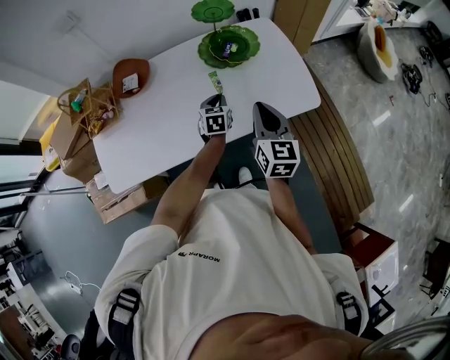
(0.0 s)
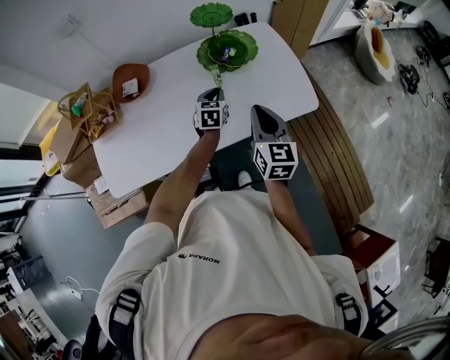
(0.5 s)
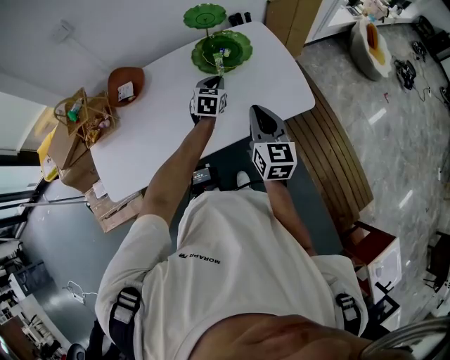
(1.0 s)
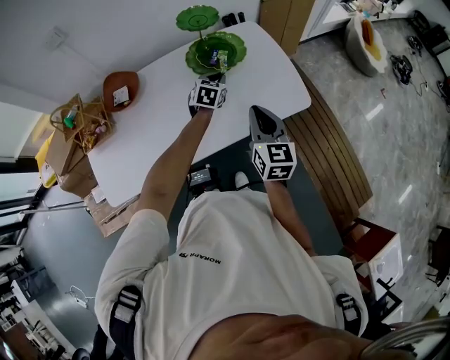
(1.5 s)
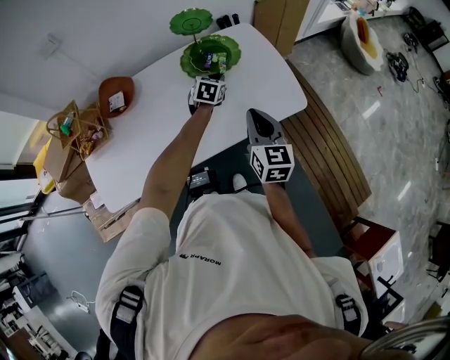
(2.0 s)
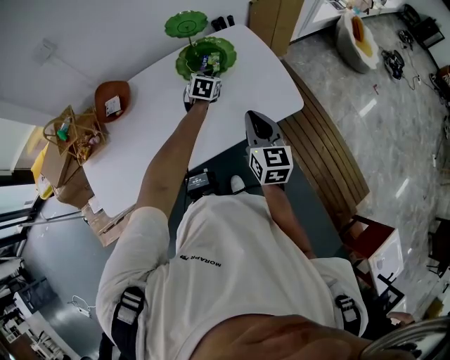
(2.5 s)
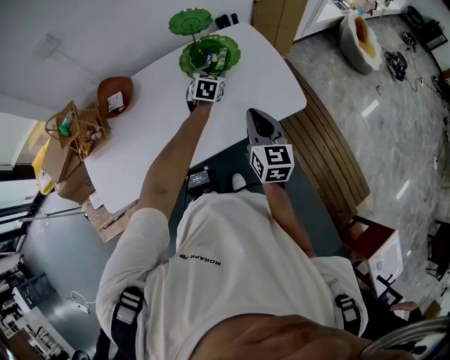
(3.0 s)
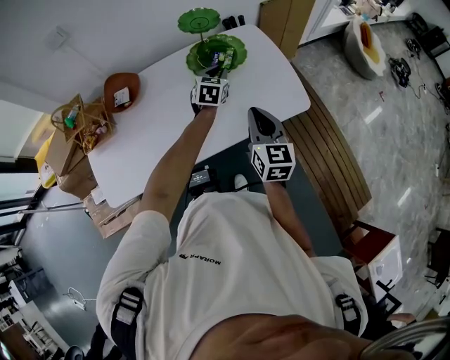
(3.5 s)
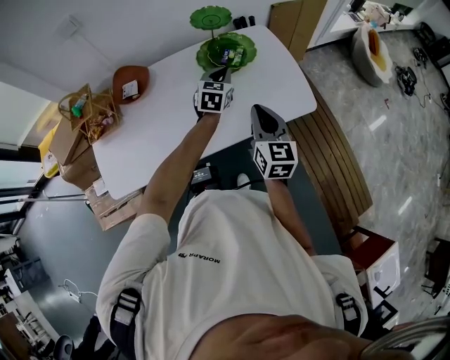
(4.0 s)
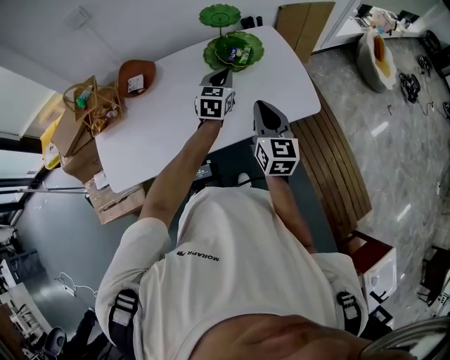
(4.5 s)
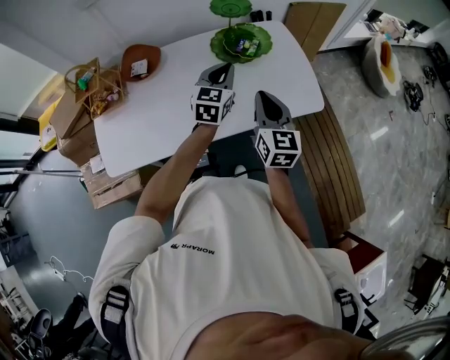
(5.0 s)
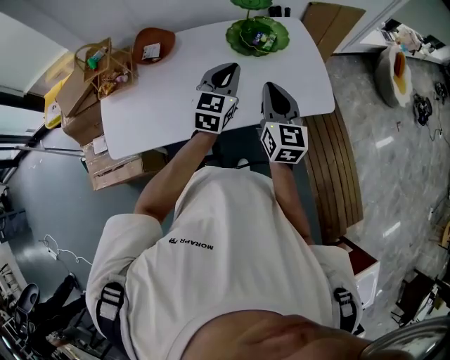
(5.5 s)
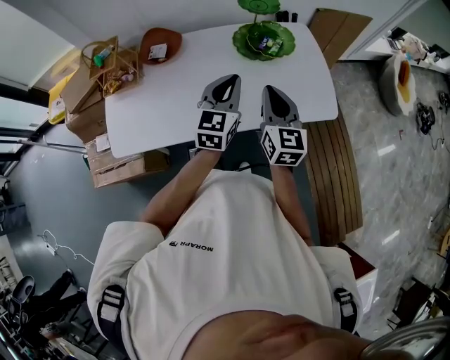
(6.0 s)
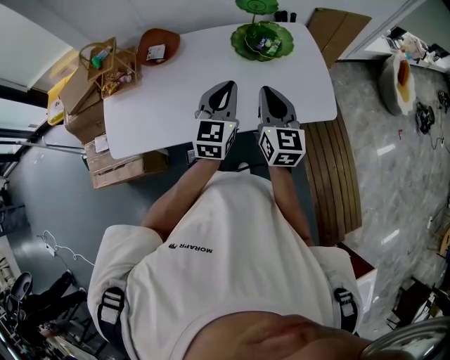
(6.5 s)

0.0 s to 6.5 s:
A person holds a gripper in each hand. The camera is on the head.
0.0 to 2.0 s: The left gripper shifts some 15 cm forward and to the right, and rotates roughly 20 degrees.
2.0 to 4.5 s: The right gripper shifts by some 5 cm. The left gripper shifts about 15 cm upward, backward and to the left, changes its angle by about 20 degrees, and opens and closes again.
4.5 to 6.5 s: The right gripper shifts by roughly 5 cm. Meanwhile the left gripper travels backward, upward and to the left by roughly 15 cm.

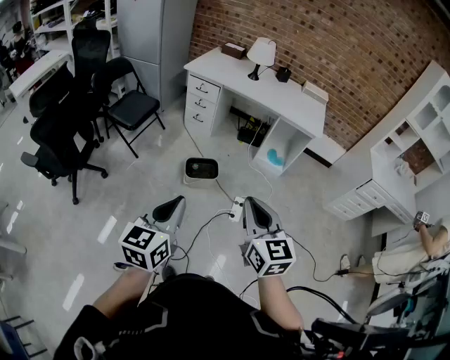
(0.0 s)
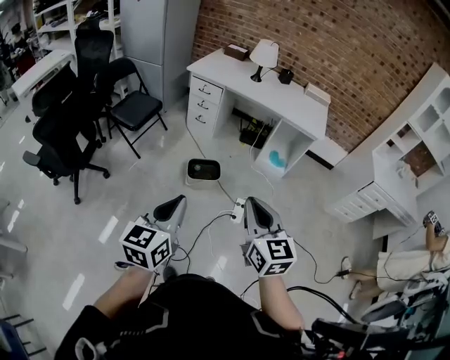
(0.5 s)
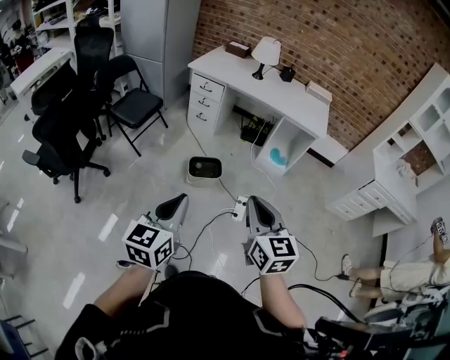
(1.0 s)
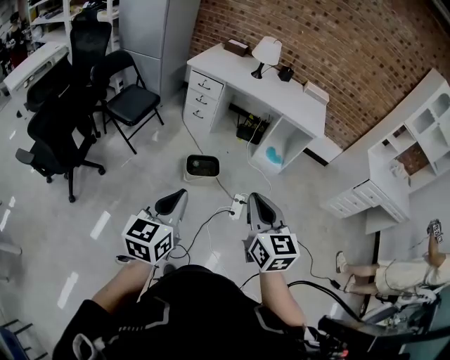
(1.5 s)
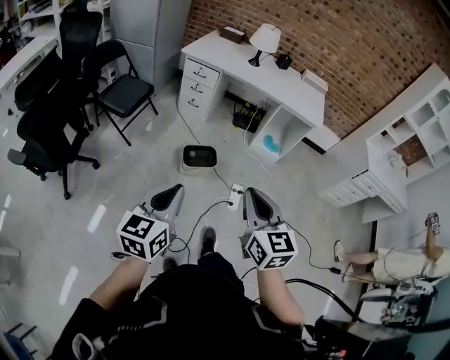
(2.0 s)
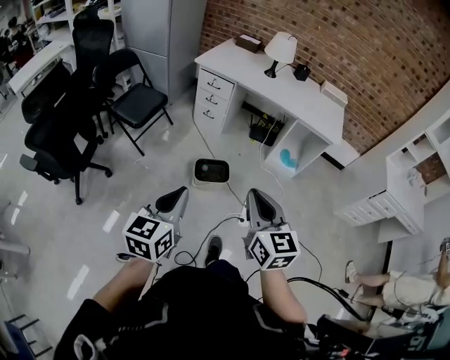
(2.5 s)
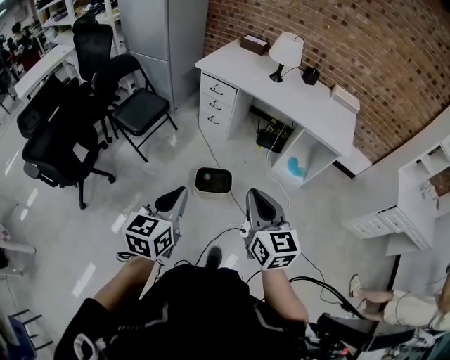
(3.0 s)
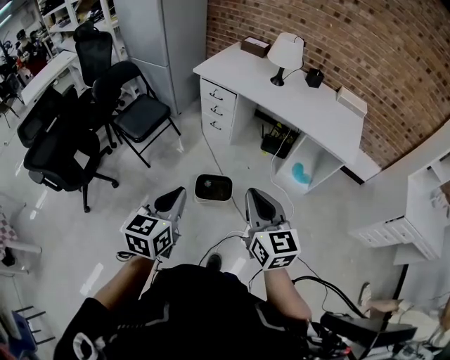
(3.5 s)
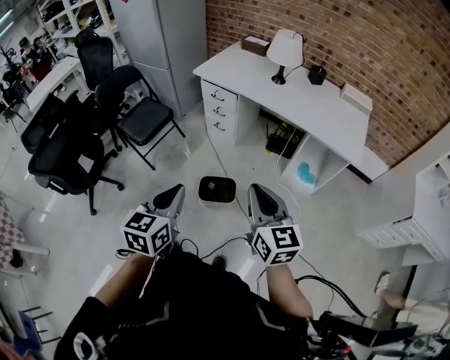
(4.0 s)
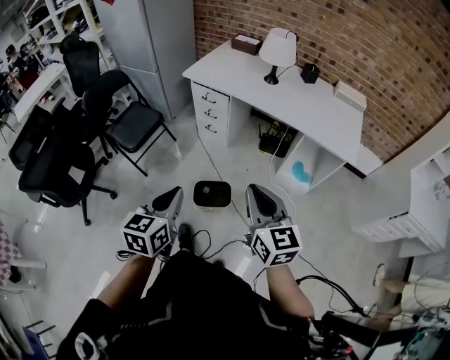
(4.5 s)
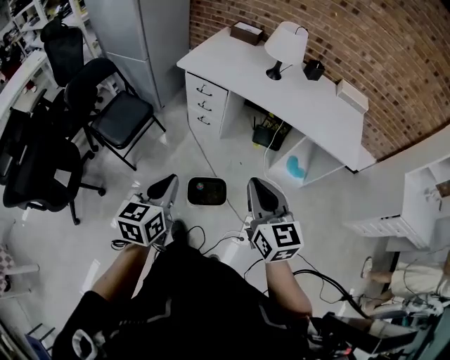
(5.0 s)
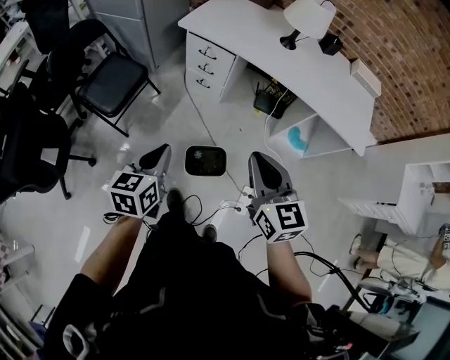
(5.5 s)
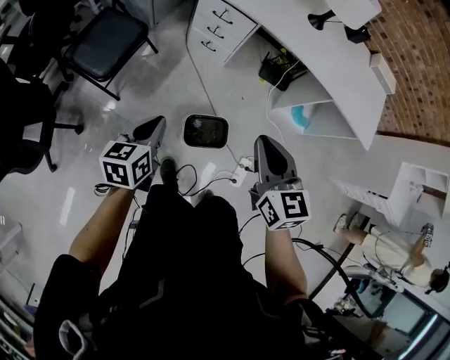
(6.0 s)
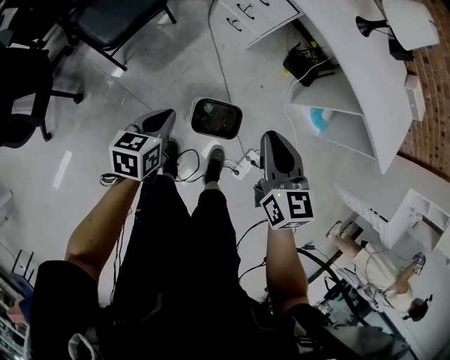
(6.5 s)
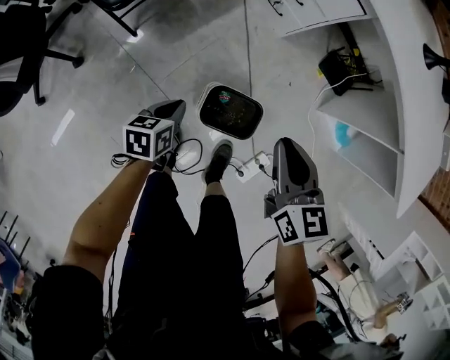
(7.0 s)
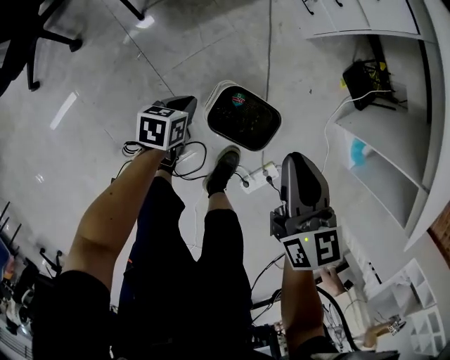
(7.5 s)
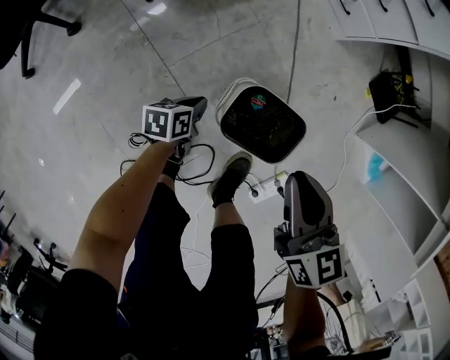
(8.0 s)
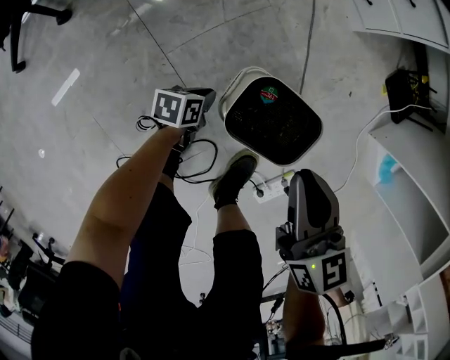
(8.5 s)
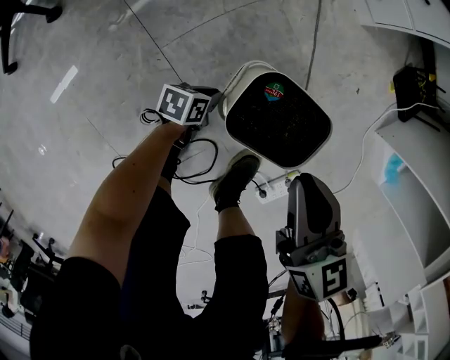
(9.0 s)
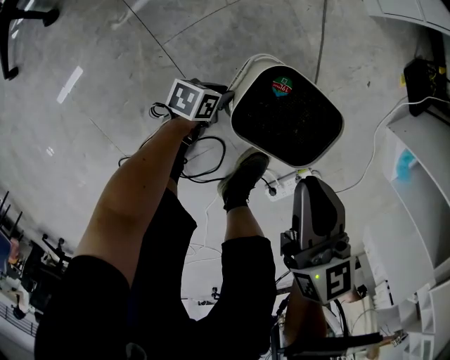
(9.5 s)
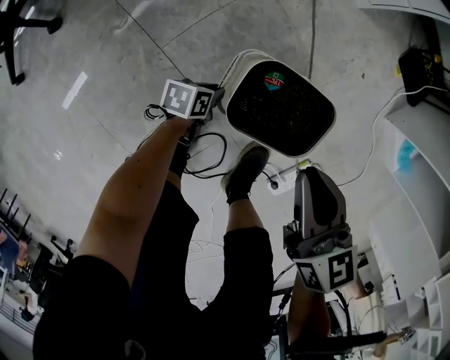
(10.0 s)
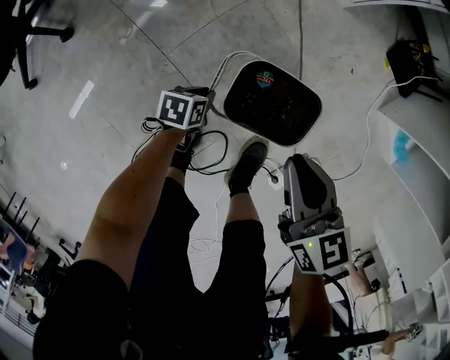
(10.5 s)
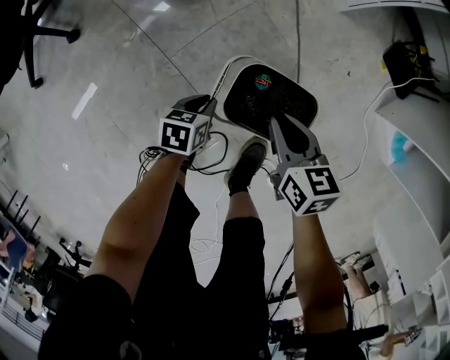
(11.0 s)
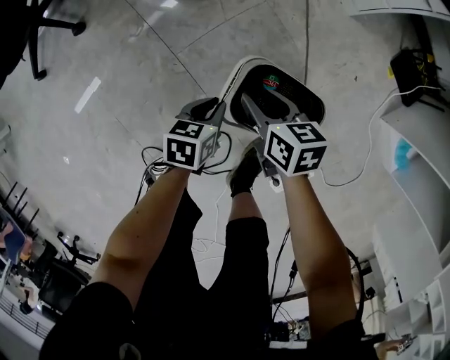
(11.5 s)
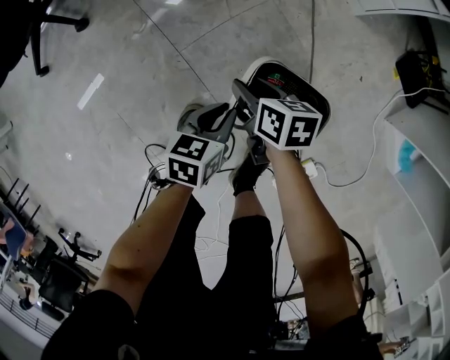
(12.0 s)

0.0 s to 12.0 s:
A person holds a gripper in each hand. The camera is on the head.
0.0 to 2.0 s: The two grippers go about 10 cm to the left.
2.0 to 4.0 s: The two grippers go roughly 30 cm forward and to the right.
4.0 to 6.0 s: The right gripper goes some 30 cm forward, to the left and downward, while the left gripper is displaced forward, downward and to the left by about 40 cm, and turns by some 20 degrees.
6.0 to 8.0 s: The grippers both shift downward by some 50 cm. The left gripper turns by some 40 degrees, while the right gripper turns by some 30 degrees.
8.0 to 10.0 s: The left gripper shifts approximately 15 cm downward and to the right; the right gripper moves downward, roughly 10 cm.
10.0 to 12.0 s: The right gripper shifts about 15 cm downward, turns by approximately 30 degrees, and opens up, while the left gripper heads upward, covering about 20 cm, and rotates roughly 20 degrees.

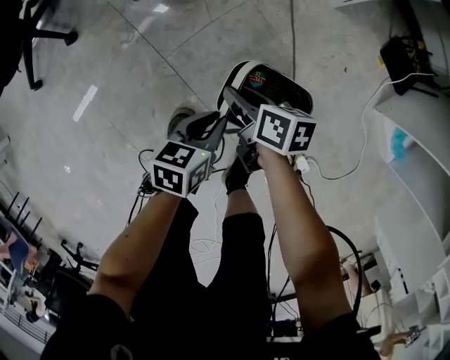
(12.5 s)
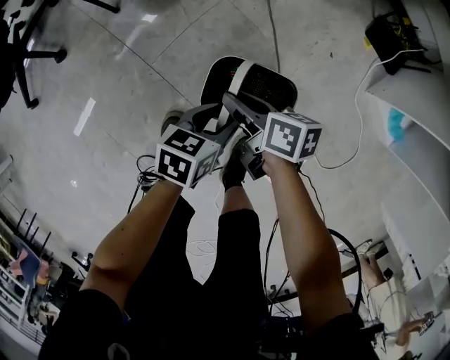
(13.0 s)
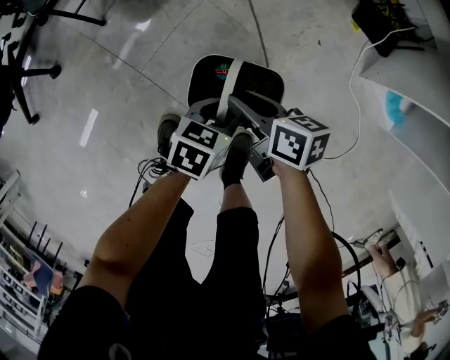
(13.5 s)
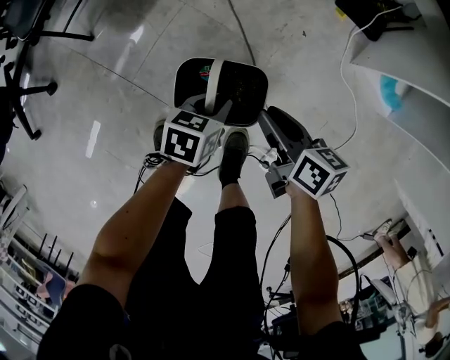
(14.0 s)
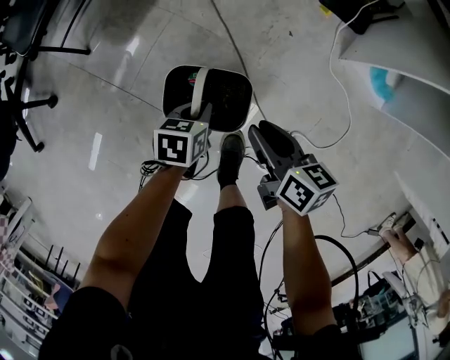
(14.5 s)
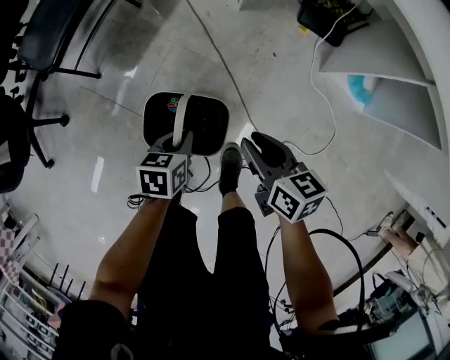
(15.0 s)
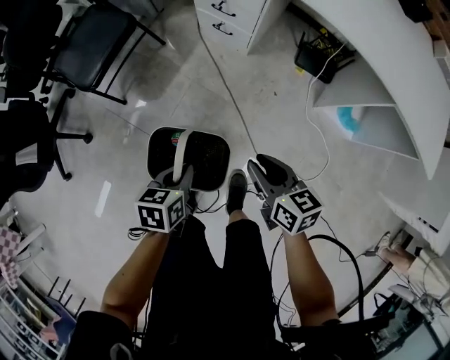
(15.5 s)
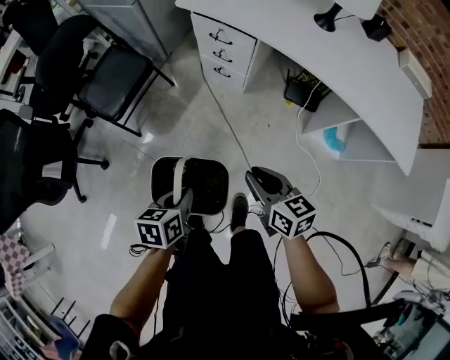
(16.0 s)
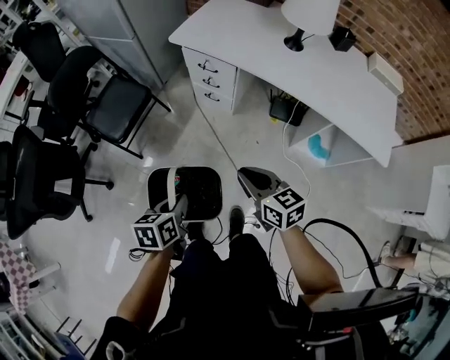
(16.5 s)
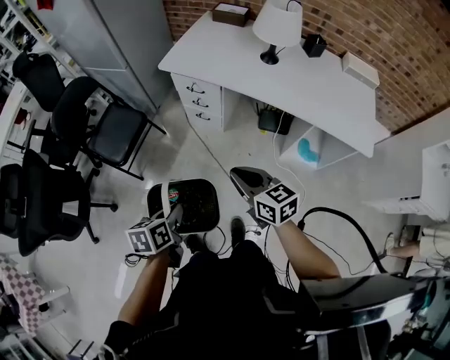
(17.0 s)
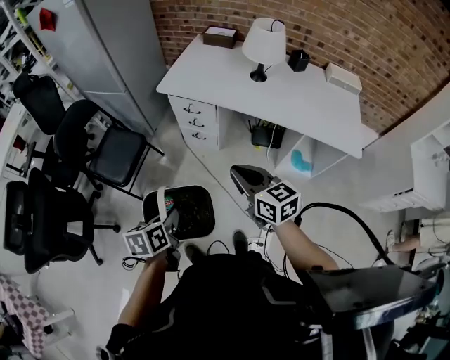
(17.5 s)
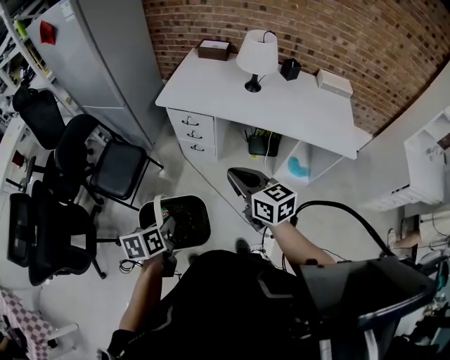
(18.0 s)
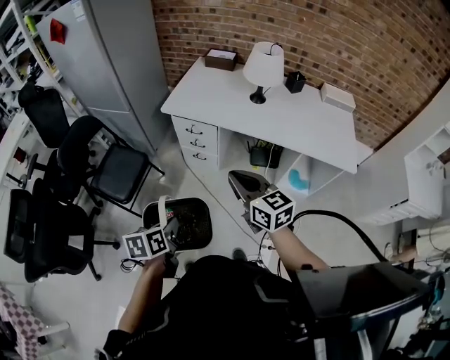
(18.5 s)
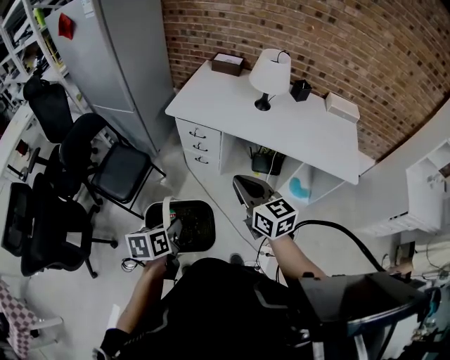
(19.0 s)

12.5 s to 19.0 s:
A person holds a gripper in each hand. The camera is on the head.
12.5 to 14.5 s: The right gripper is displaced to the right and upward by approximately 25 cm, and rotates some 20 degrees, while the left gripper goes approximately 10 cm to the right, and opens and closes again.
14.5 to 17.0 s: Both grippers move upward, approximately 50 cm. The right gripper turns by some 30 degrees.
17.0 to 19.0 s: The left gripper goes about 5 cm upward. The right gripper moves upward, approximately 10 cm.

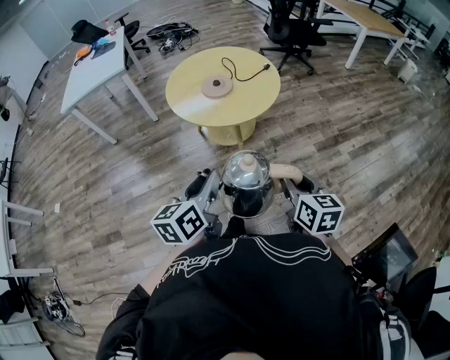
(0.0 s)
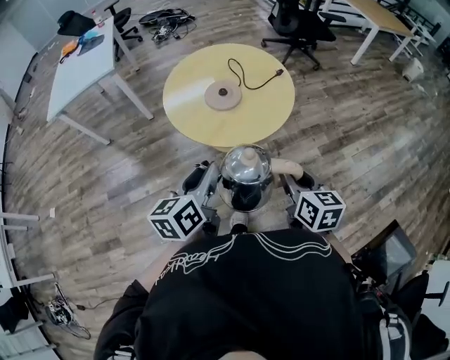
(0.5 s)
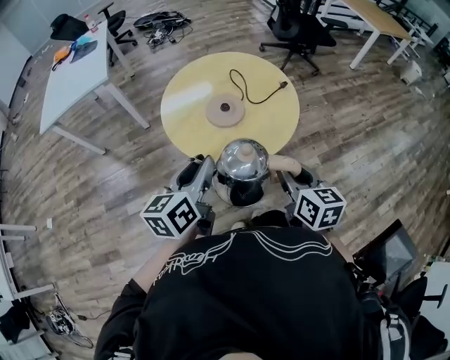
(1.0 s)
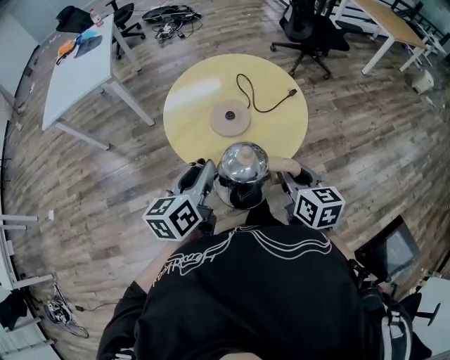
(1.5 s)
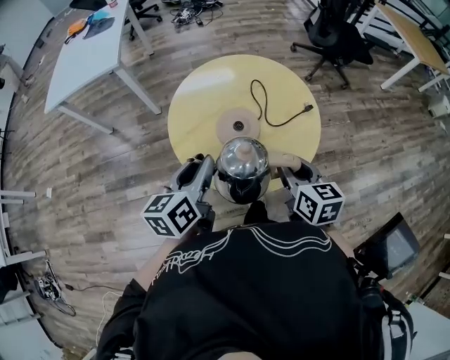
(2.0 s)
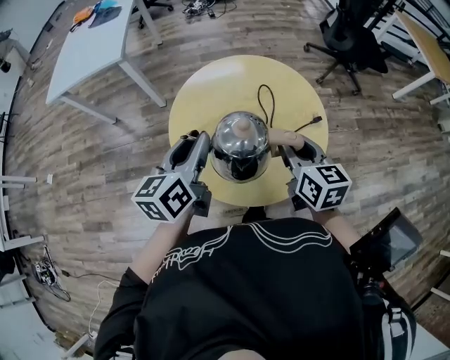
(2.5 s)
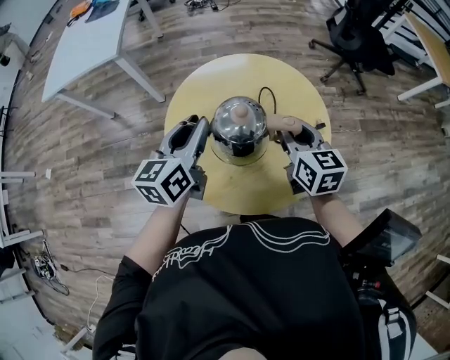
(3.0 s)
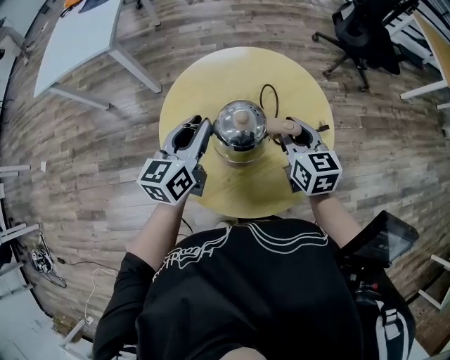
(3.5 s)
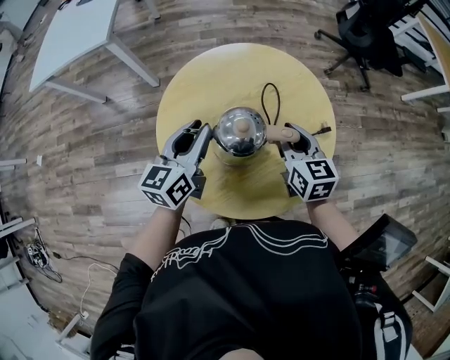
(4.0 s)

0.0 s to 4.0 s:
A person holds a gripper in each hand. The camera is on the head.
0.0 to 2.0 s: The two grippers go about 40 cm forward.
2.0 to 4.0 s: Both grippers move forward and downward, roughly 20 cm.
